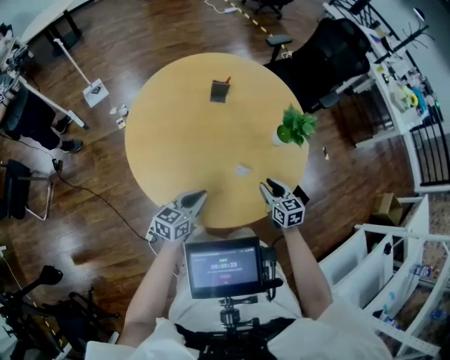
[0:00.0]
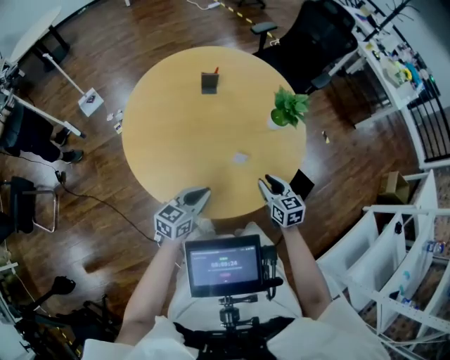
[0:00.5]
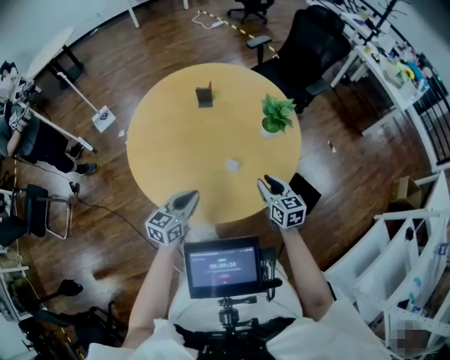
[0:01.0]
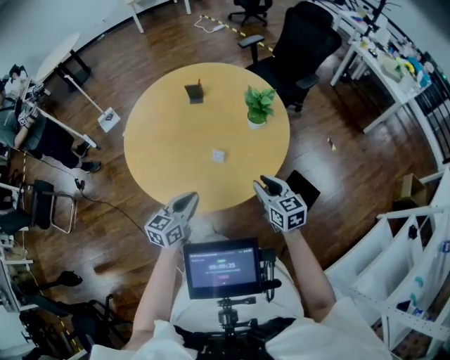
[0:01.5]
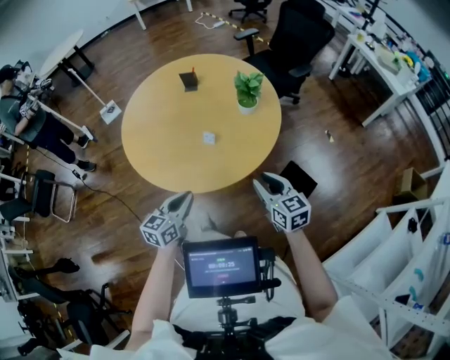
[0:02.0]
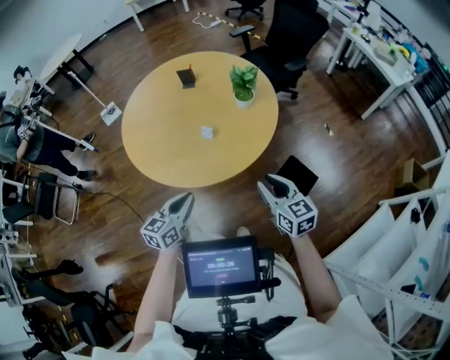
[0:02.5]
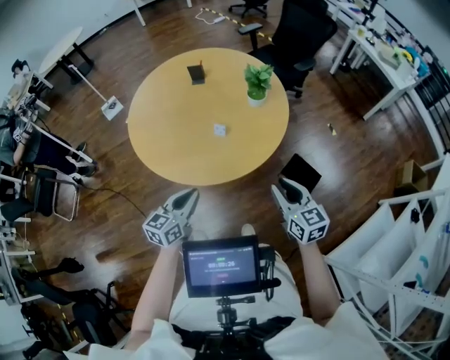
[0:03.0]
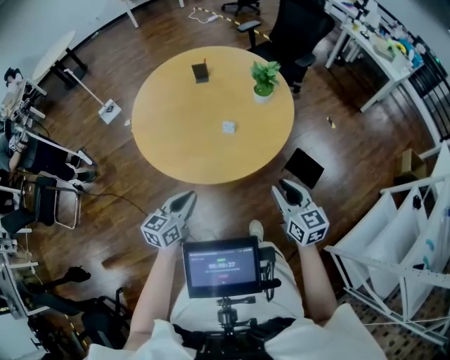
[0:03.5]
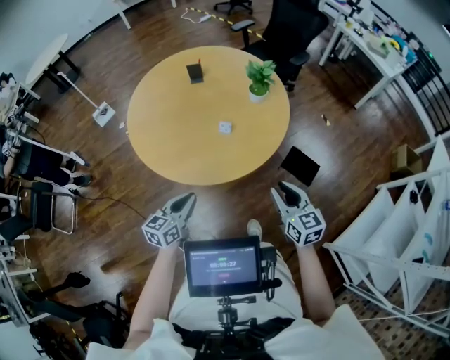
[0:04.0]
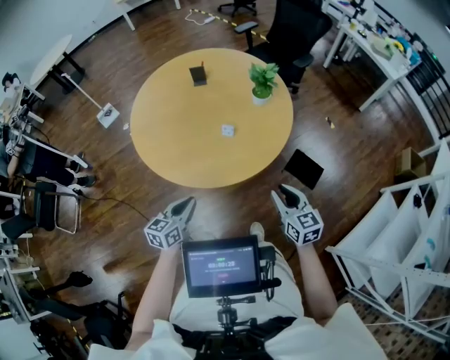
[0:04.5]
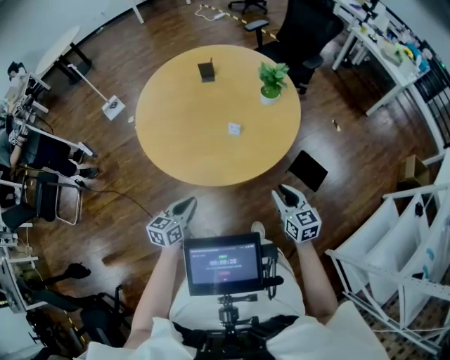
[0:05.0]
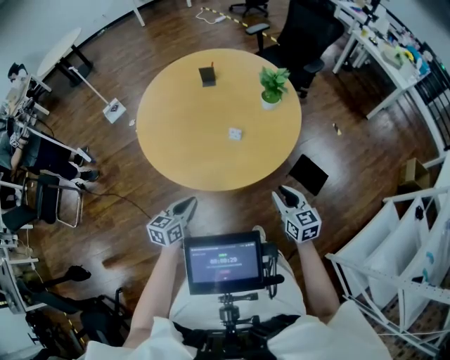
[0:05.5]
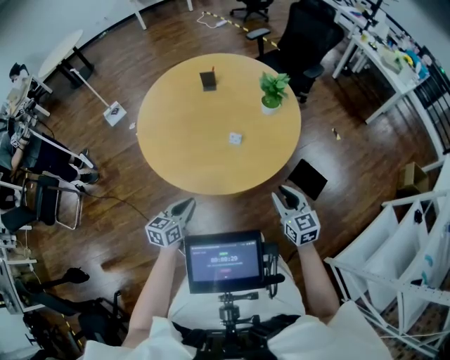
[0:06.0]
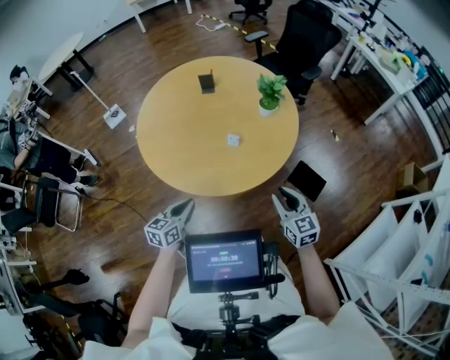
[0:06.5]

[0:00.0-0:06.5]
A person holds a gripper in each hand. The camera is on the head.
0:00.0 to 0:02.0: The left gripper moves backward and to the right, about 25 cm. The right gripper travels backward, to the right and upward by some 30 cm.
0:02.0 to 0:04.5: The left gripper travels to the left by roughly 15 cm; the right gripper moves backward and to the left, roughly 10 cm.
0:04.5 to 0:06.5: The grippers stay close to where they were, moving slightly.

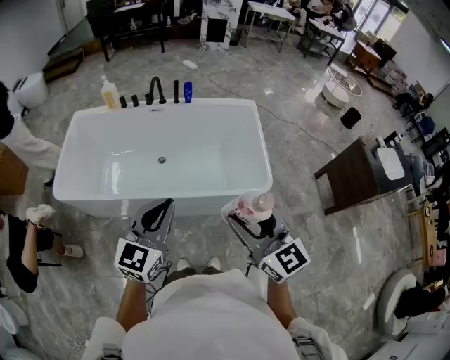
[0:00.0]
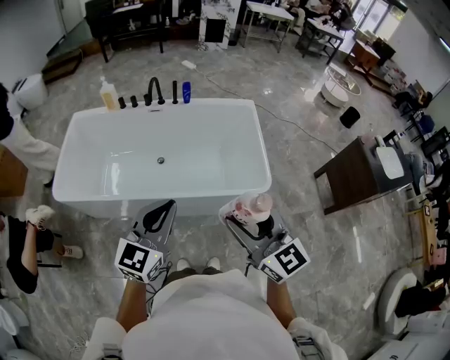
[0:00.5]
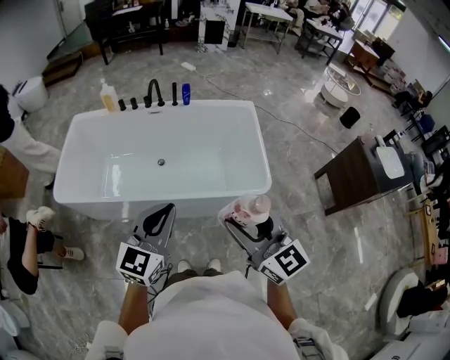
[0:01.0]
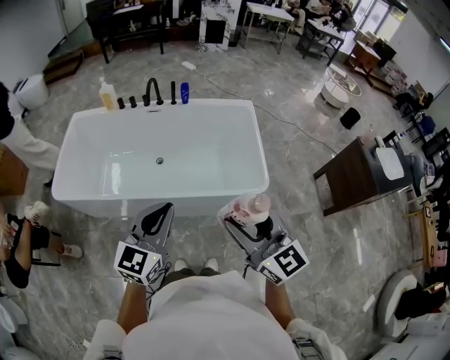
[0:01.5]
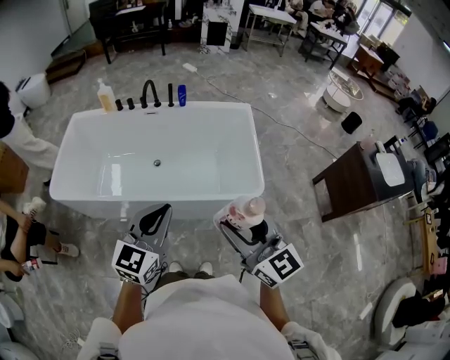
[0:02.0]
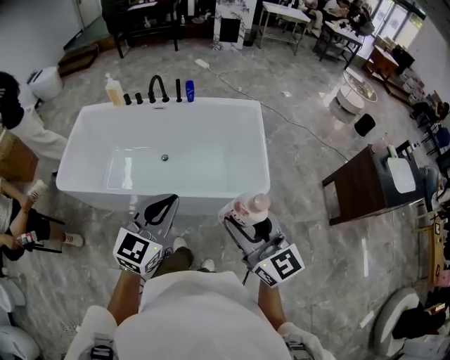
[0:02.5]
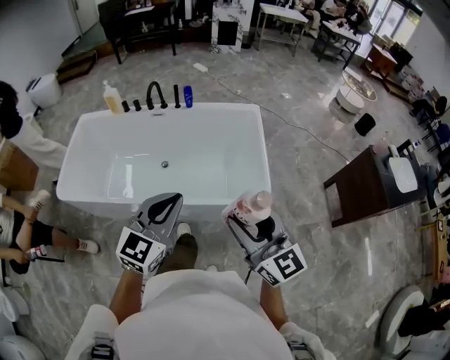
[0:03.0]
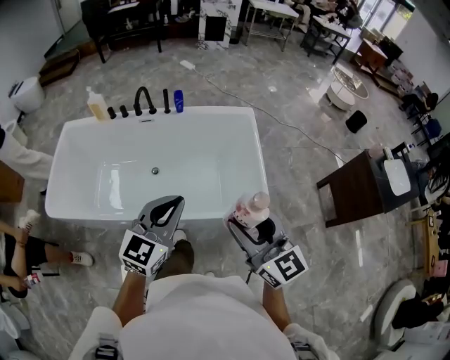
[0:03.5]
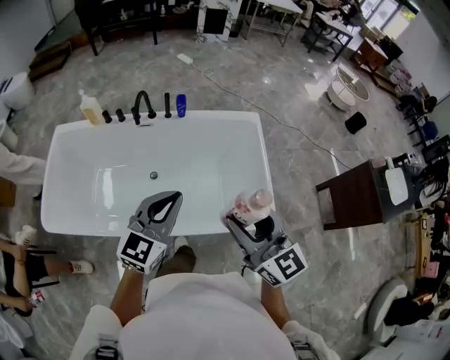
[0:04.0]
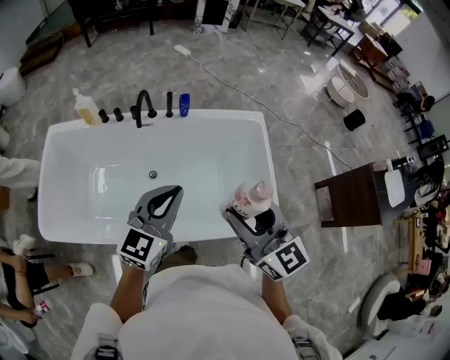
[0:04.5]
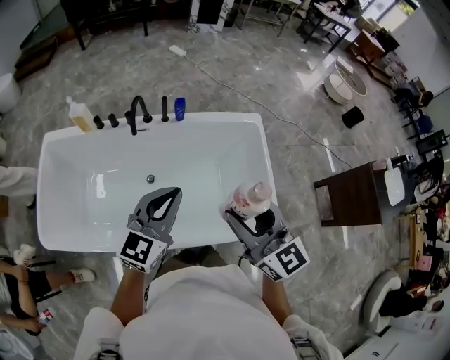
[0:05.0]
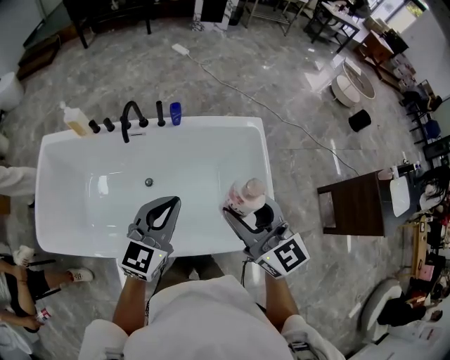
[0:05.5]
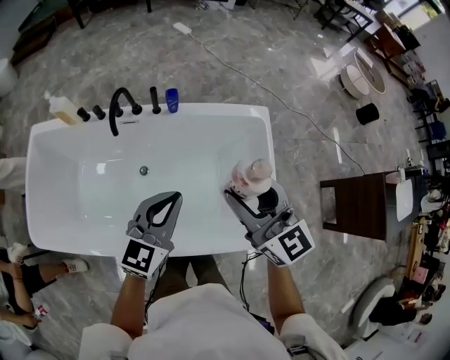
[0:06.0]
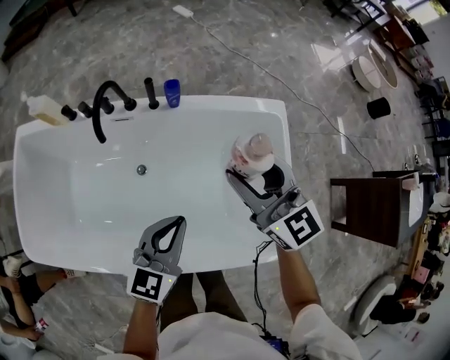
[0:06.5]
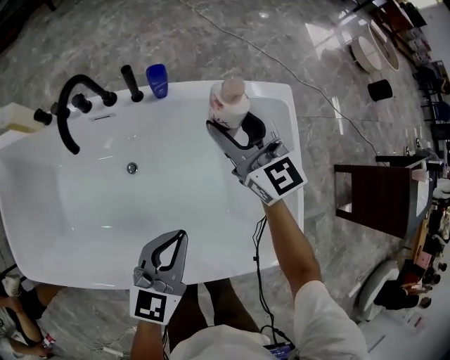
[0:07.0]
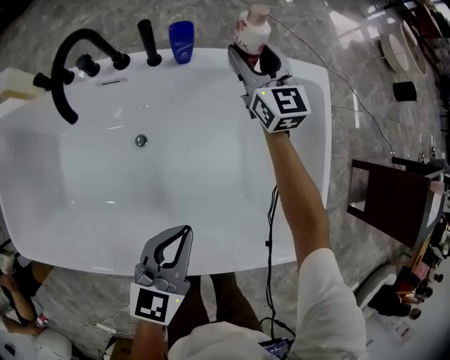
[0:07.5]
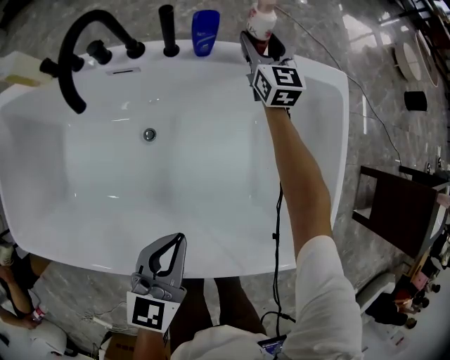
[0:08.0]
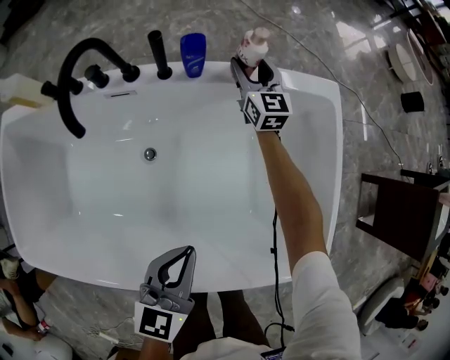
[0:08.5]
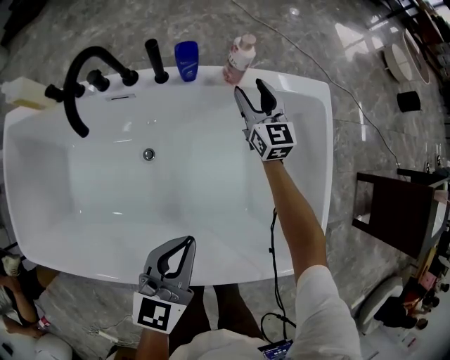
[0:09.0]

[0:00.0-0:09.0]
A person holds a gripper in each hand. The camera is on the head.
0:00.0 to 0:02.0: The two grippers go approximately 5 cm to the right.
0:02.0 to 0:04.5: Both grippers travel together forward, roughly 35 cm.
0:04.5 to 0:07.0: The left gripper shifts roughly 35 cm downward and forward, and changes its angle by about 20 degrees. Meanwhile the right gripper shifts some 50 cm forward and downward.
0:07.0 to 0:09.0: The left gripper shifts about 5 cm downward. The right gripper shifts roughly 20 cm downward and forward.

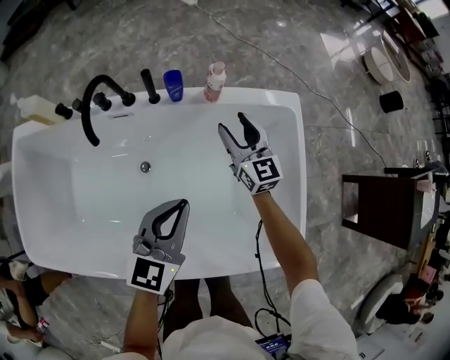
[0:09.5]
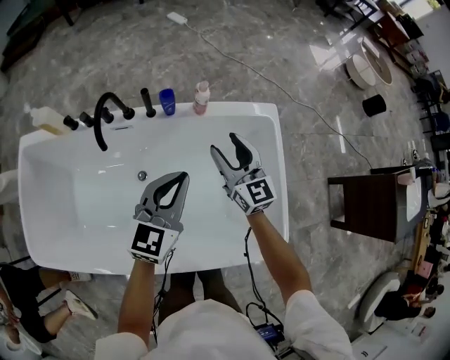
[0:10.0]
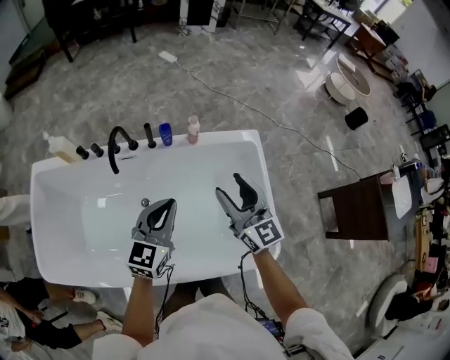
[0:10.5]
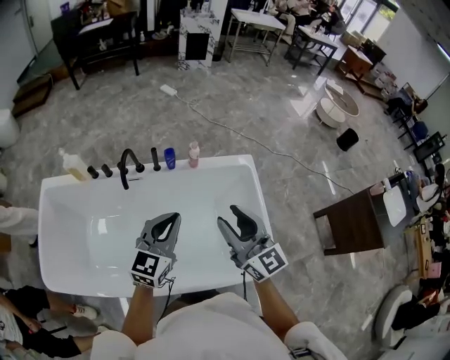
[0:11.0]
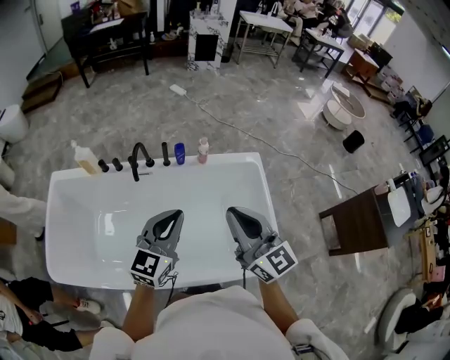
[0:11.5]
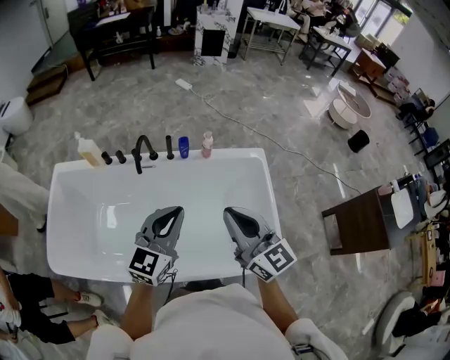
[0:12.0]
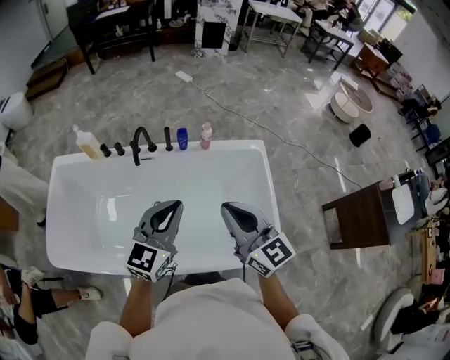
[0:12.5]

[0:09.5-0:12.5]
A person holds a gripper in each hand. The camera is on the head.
0:09.5 to 0:11.0: The left gripper goes roughly 25 cm upward, while the right gripper travels upward and backward by about 50 cm.
0:11.0 to 0:12.5: Both grippers move backward, about 5 cm. The right gripper closes its fingers.

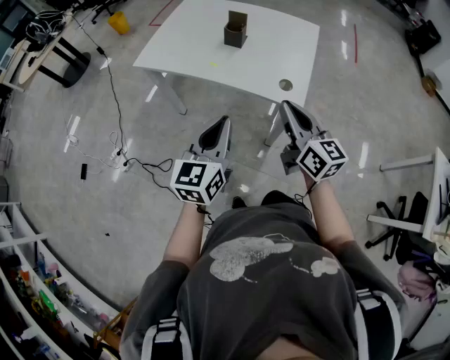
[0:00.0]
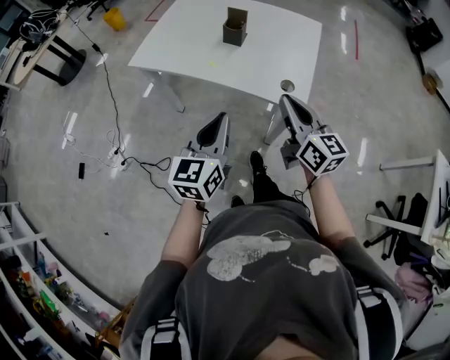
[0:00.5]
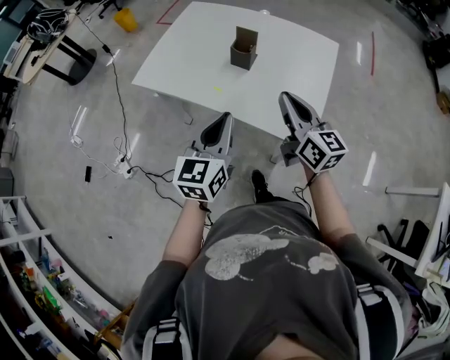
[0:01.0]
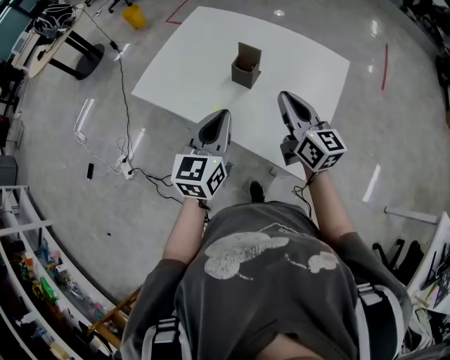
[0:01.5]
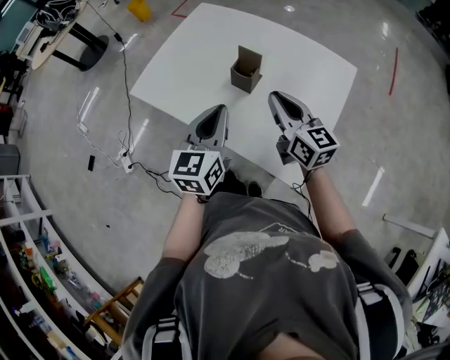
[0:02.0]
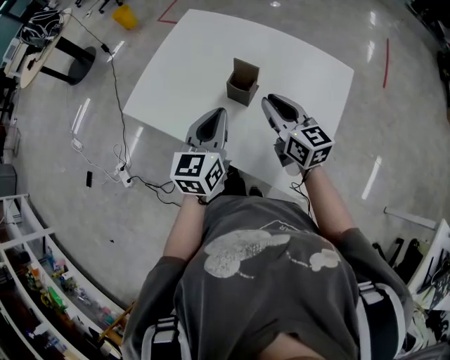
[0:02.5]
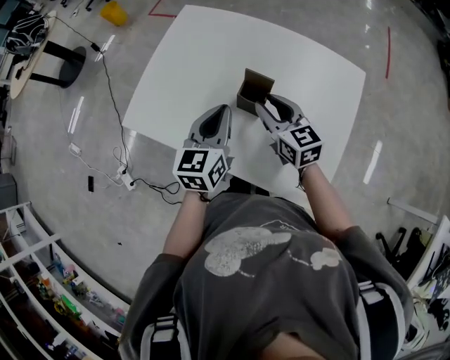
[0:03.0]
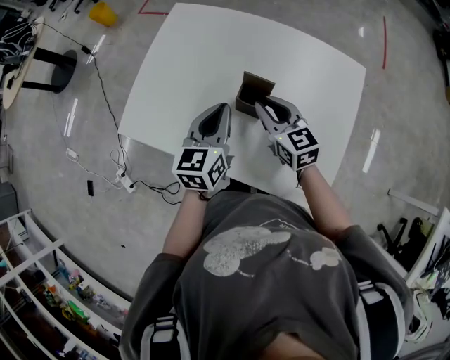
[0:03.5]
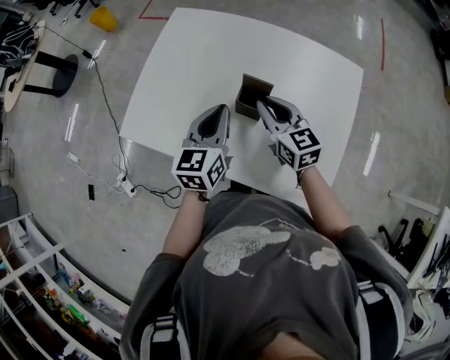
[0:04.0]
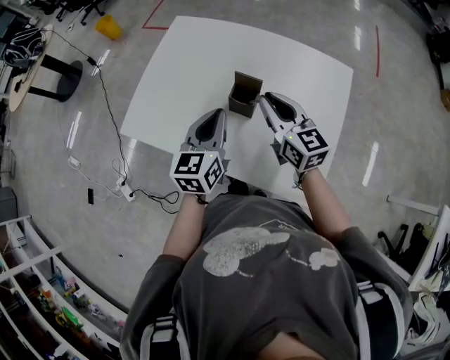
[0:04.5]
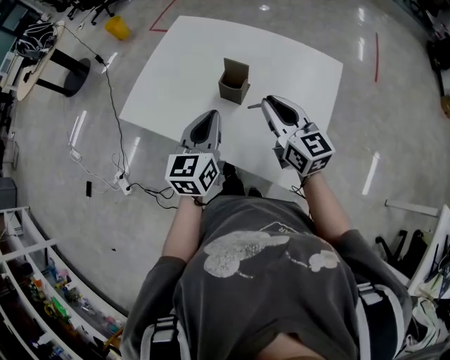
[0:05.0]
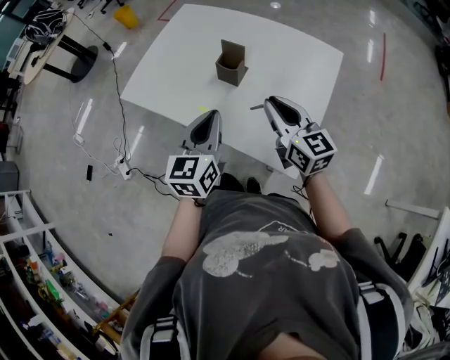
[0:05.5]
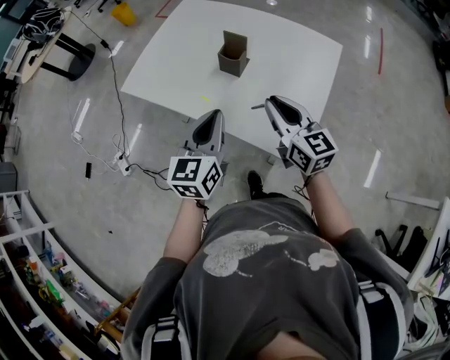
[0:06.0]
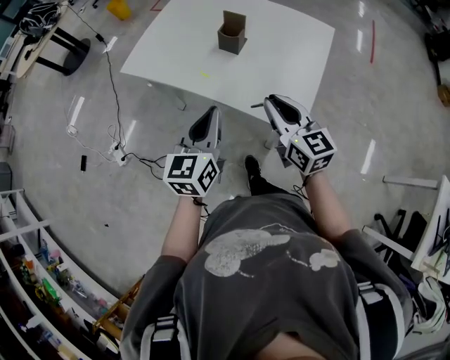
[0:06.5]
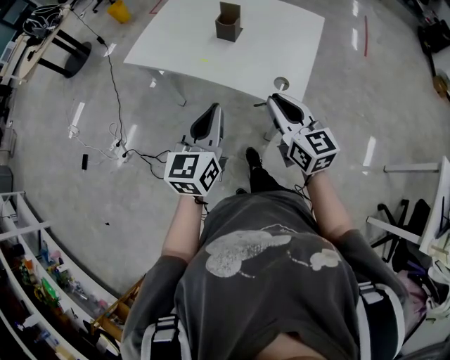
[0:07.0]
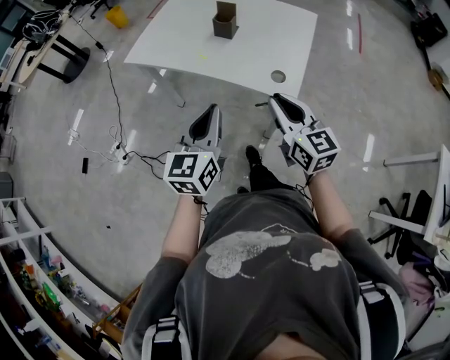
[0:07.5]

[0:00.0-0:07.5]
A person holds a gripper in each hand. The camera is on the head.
0:00.0 to 0:02.0: Both grippers travel together forward, roughly 30 cm.
0:02.0 to 0:04.0: The two grippers go about 15 cm forward and downward.
0:04.0 to 0:05.5: The left gripper heads backward, covering roughly 20 cm; the right gripper moves backward and to the right, roughly 20 cm.
0:05.5 to 0:07.5: Both grippers travel together backward, roughly 25 cm.
